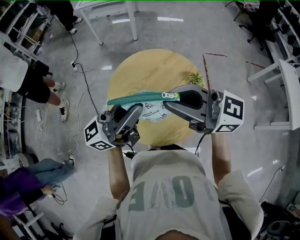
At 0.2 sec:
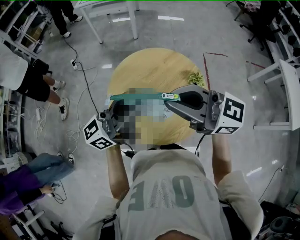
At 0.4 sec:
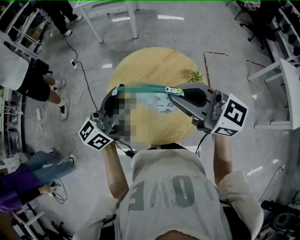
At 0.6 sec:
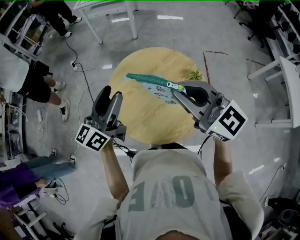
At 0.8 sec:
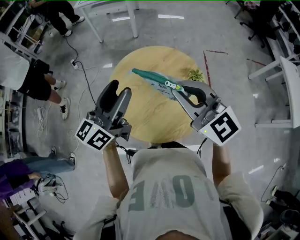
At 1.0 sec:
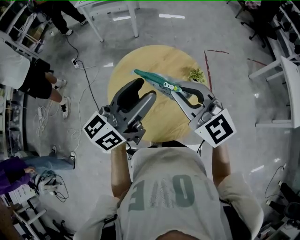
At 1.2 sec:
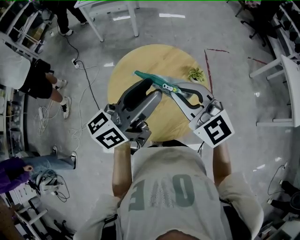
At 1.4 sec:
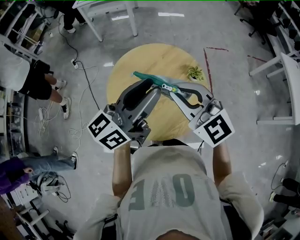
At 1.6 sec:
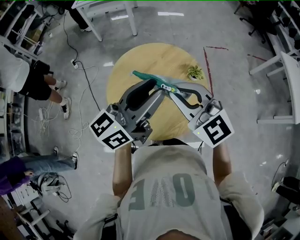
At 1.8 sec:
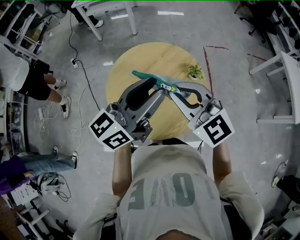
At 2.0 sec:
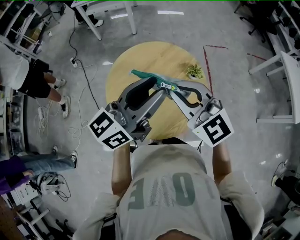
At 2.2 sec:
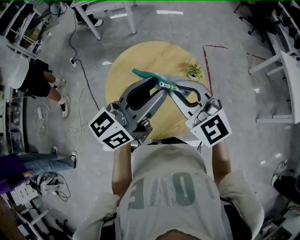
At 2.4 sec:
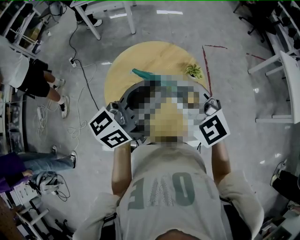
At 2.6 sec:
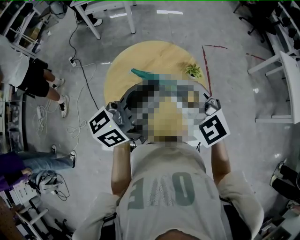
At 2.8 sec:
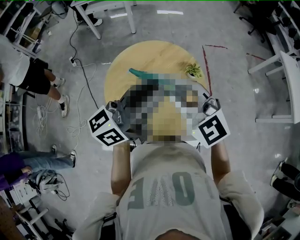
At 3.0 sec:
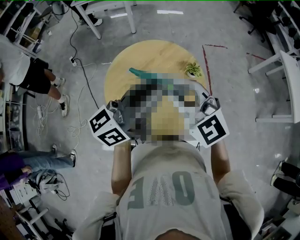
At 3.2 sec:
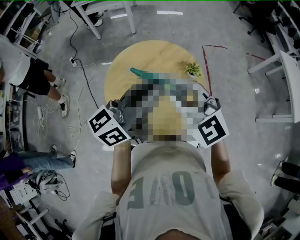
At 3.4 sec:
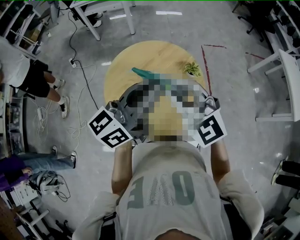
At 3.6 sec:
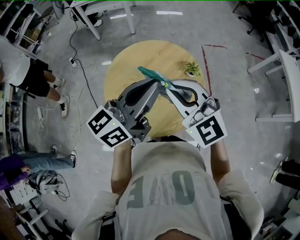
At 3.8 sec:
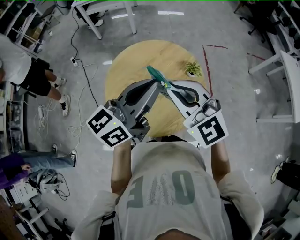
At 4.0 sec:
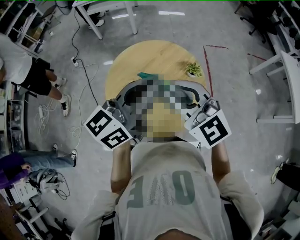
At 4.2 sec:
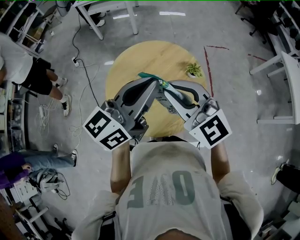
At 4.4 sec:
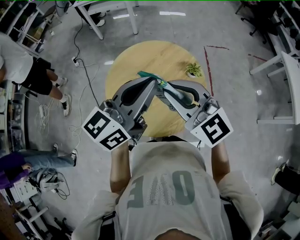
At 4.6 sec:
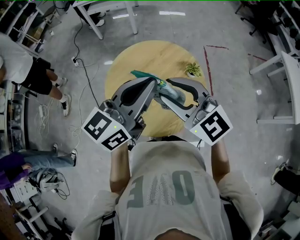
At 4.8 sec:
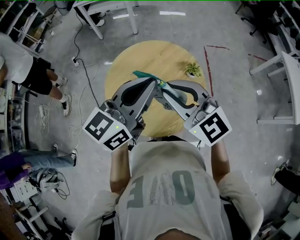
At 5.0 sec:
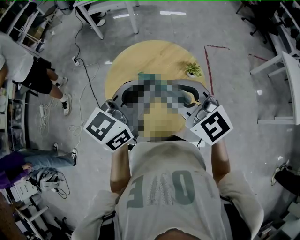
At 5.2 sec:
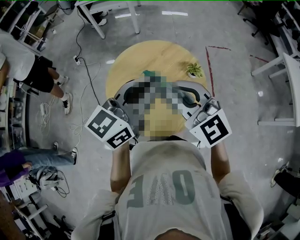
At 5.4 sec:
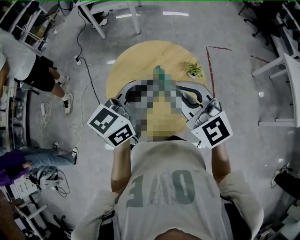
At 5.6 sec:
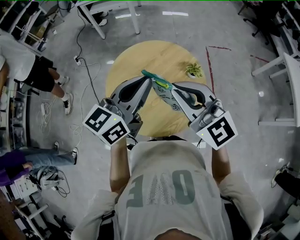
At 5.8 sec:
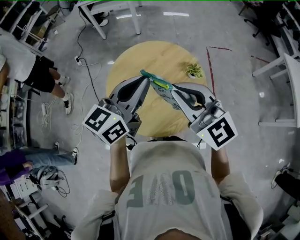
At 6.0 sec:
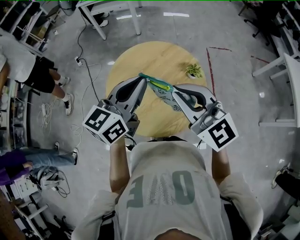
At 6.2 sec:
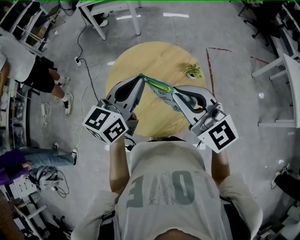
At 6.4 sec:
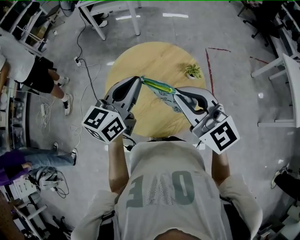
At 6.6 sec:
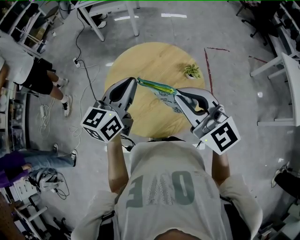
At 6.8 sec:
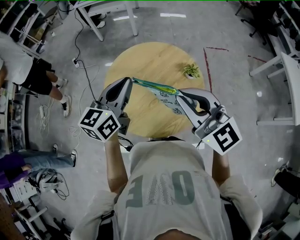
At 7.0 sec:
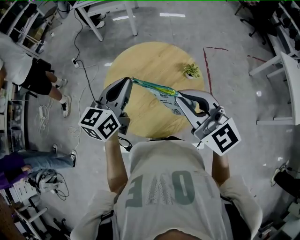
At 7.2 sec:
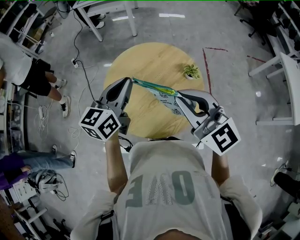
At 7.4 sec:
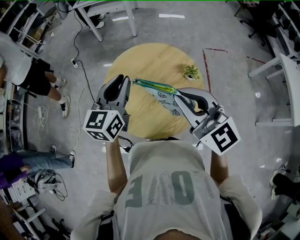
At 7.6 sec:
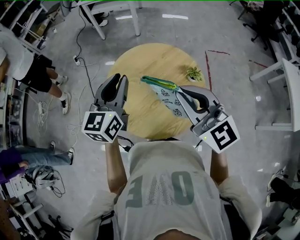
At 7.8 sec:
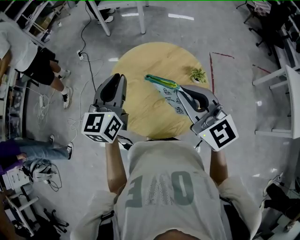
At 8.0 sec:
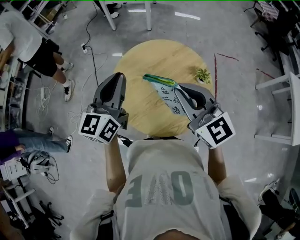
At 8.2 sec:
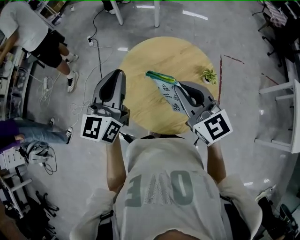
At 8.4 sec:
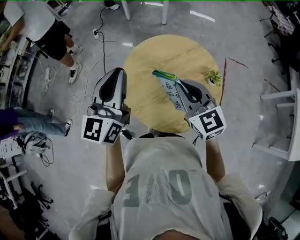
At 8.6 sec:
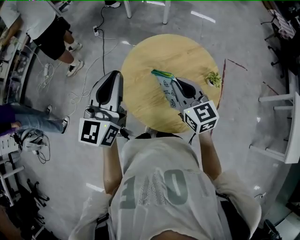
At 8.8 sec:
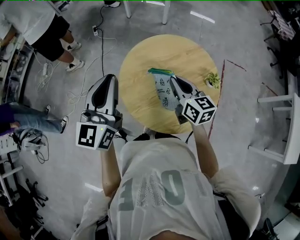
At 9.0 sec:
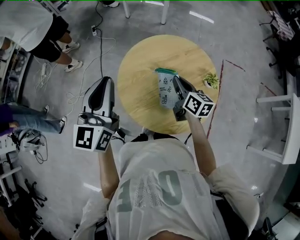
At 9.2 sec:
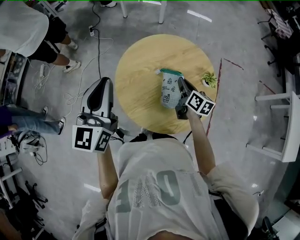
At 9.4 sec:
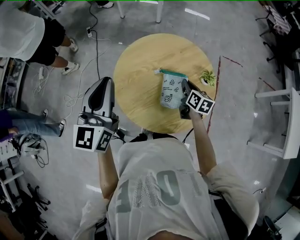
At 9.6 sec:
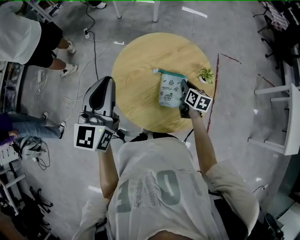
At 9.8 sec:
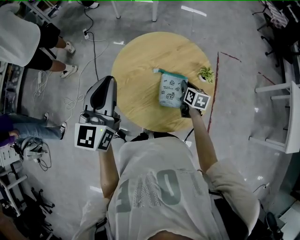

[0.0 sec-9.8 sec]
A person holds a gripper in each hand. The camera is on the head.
0.0 sec to 1.4 sec: The left gripper swivels roughly 20 degrees, and opens its fingers, while the right gripper moves downward, approximately 5 cm, and rotates approximately 50 degrees.
1.4 sec to 4.2 sec: There are only small adjustments of the grippers.
4.2 sec to 5.6 sec: The grippers make only small movements.
5.6 sec to 7.0 sec: The left gripper travels to the left and downward by roughly 10 cm.
7.0 sec to 8.4 sec: The left gripper moves to the left and upward, approximately 10 cm, and rotates roughly 30 degrees; the right gripper heads downward, forward and to the left, covering some 10 cm.
8.4 sec to 9.8 sec: The right gripper goes about 30 cm downward and to the right, and changes its angle by about 50 degrees.

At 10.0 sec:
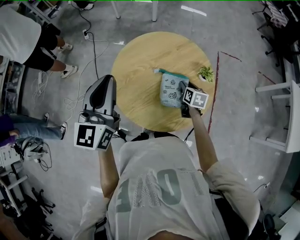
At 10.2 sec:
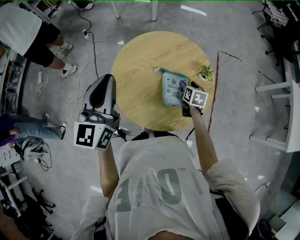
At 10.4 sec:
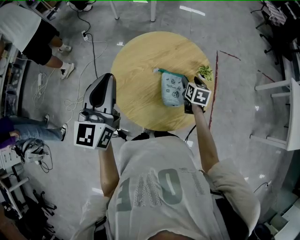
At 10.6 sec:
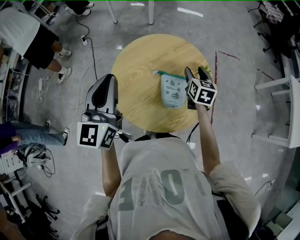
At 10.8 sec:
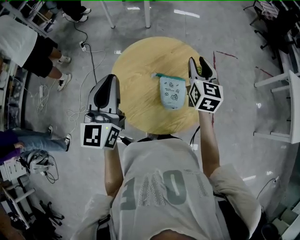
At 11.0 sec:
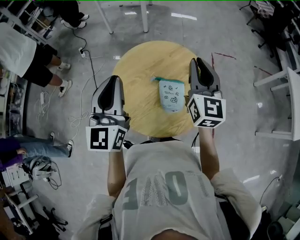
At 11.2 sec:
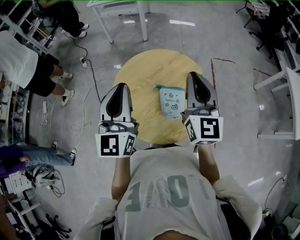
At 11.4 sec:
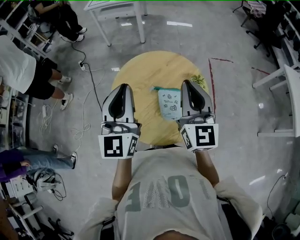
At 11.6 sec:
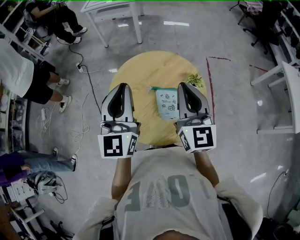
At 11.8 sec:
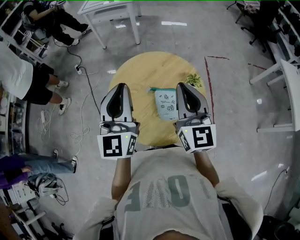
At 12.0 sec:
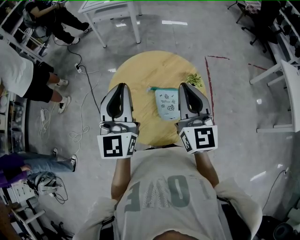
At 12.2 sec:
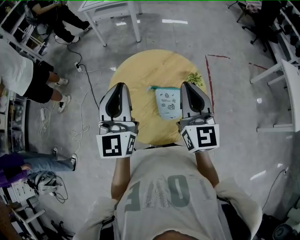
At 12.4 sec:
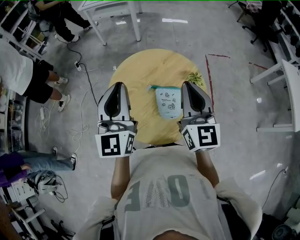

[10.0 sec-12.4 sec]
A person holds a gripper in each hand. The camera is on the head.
10.0 sec to 11.2 sec: The right gripper goes about 35 cm upward, tips its fingers upward by approximately 50 degrees, and closes up. Meanwhile the left gripper moves to the right, about 5 cm.
11.2 sec to 12.4 sec: There are only small adjustments of the grippers.

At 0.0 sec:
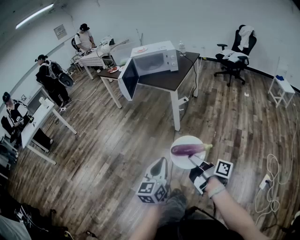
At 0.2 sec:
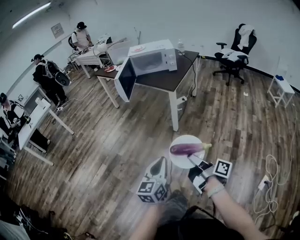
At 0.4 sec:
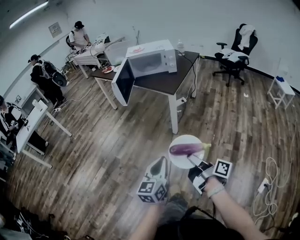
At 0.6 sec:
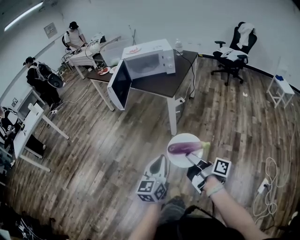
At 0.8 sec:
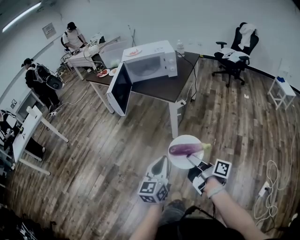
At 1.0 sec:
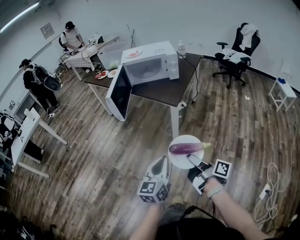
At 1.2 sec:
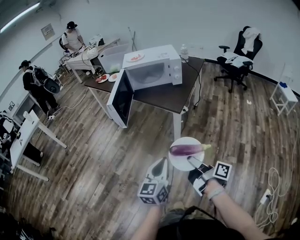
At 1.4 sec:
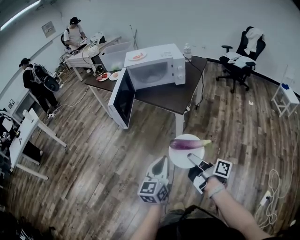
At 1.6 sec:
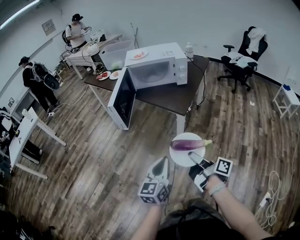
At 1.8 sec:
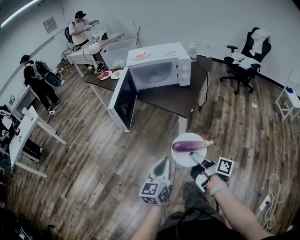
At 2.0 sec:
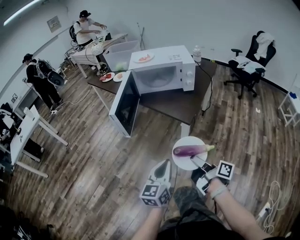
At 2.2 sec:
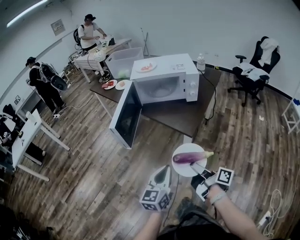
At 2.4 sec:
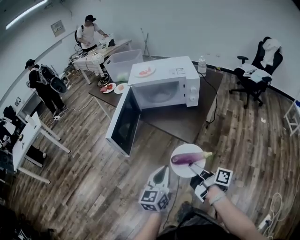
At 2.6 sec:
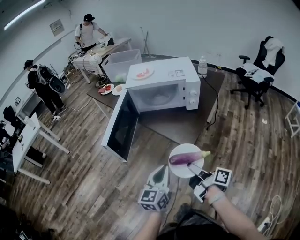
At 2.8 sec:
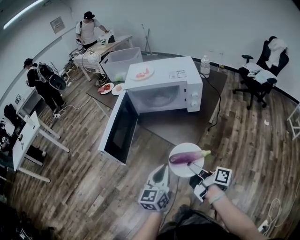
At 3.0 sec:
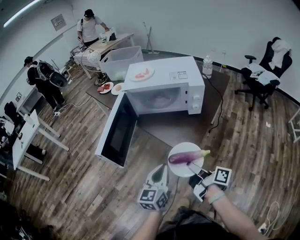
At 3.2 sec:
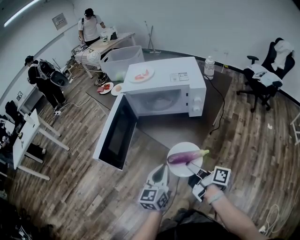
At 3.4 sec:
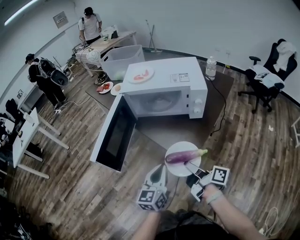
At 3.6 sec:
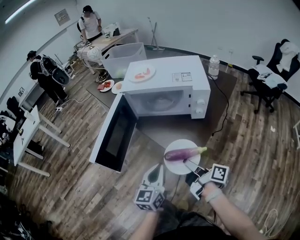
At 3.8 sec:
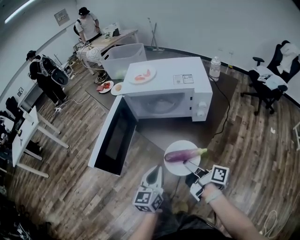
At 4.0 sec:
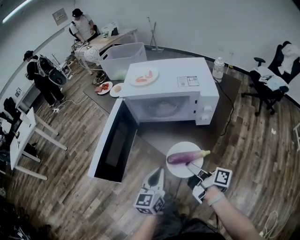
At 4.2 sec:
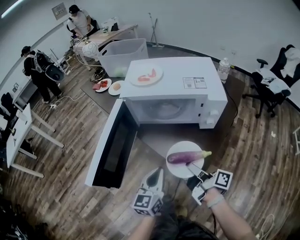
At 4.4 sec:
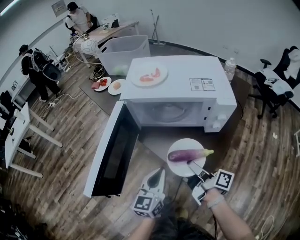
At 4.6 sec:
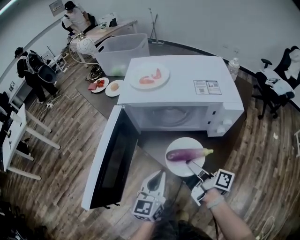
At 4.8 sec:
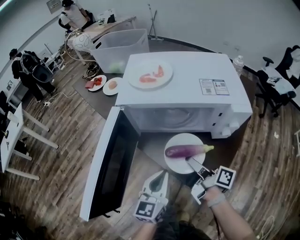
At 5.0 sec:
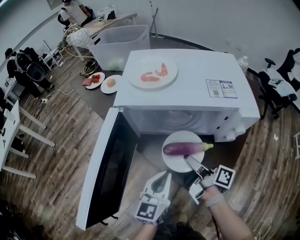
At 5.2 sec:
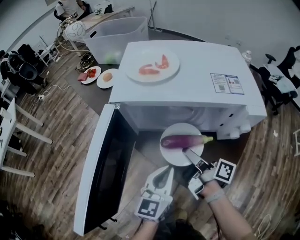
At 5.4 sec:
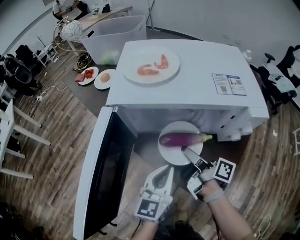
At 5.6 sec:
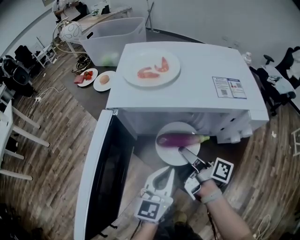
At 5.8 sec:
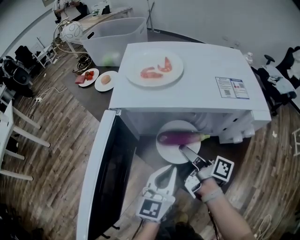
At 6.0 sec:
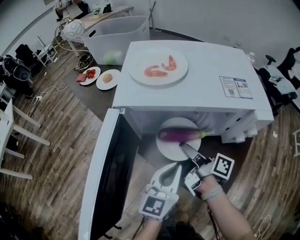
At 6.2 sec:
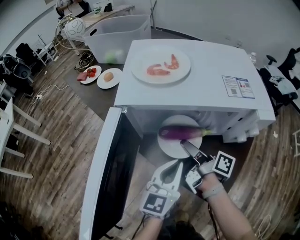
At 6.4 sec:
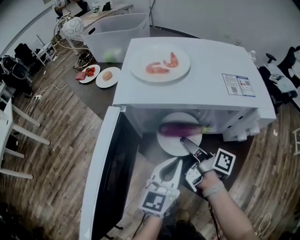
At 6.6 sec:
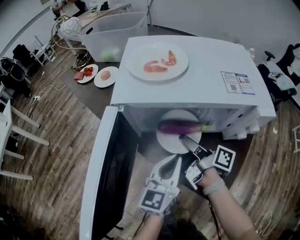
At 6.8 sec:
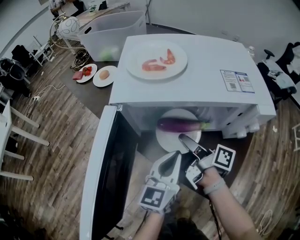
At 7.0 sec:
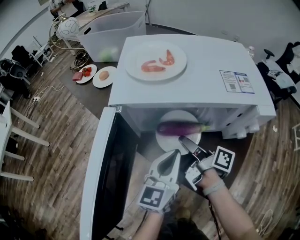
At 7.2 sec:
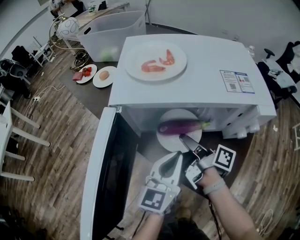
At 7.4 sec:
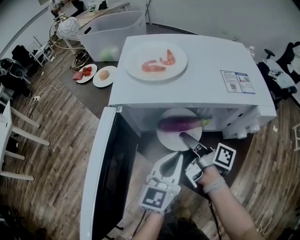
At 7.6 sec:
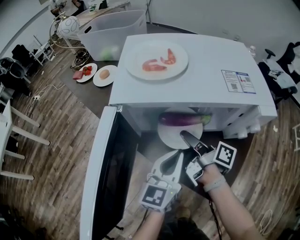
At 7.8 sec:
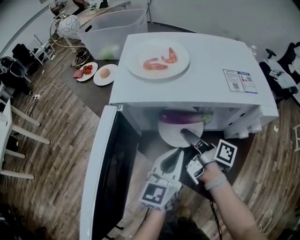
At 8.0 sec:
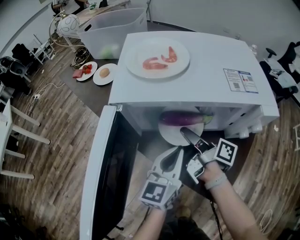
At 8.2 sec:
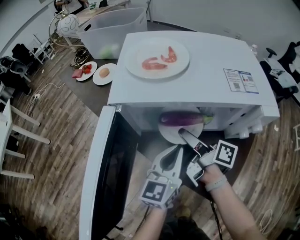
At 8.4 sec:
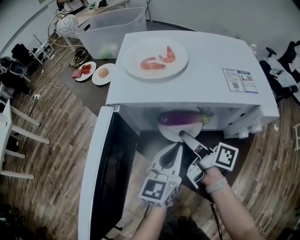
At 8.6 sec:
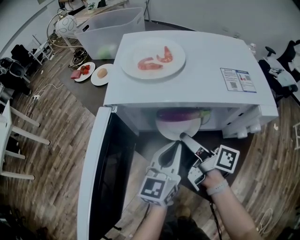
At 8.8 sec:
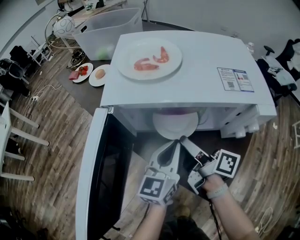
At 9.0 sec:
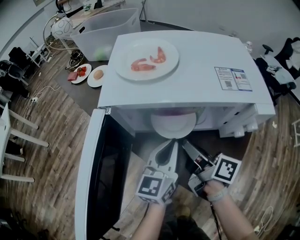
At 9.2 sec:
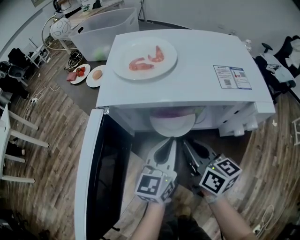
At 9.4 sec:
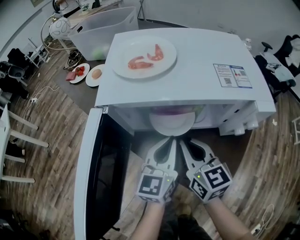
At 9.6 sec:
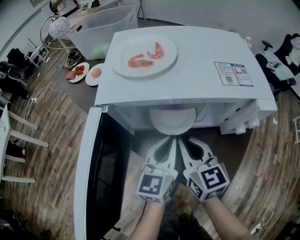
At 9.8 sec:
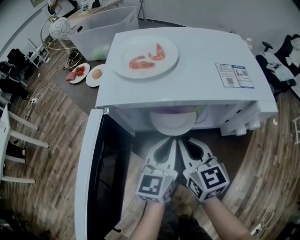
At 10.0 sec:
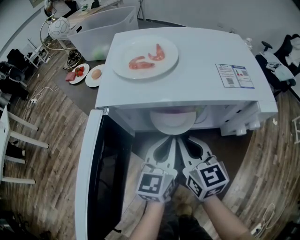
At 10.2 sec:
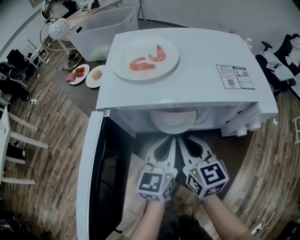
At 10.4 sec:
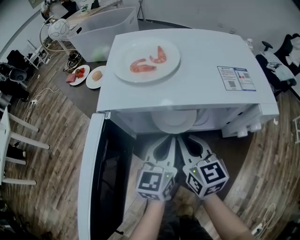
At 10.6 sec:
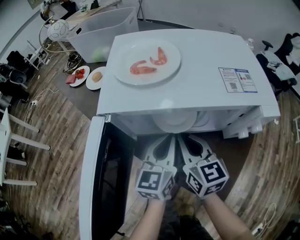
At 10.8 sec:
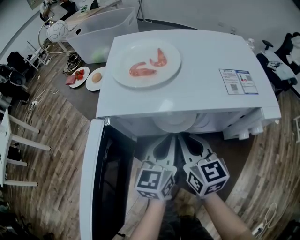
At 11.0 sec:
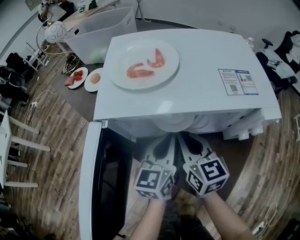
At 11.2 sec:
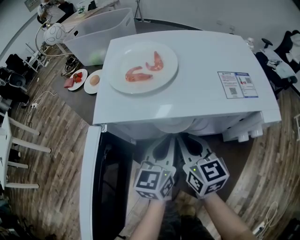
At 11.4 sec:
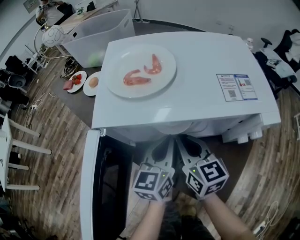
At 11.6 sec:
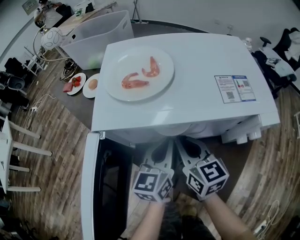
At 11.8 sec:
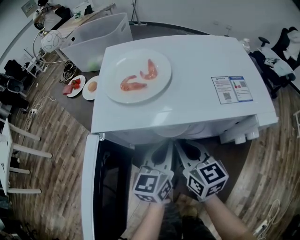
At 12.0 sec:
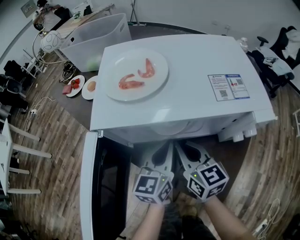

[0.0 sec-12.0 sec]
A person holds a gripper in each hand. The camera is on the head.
0.0 sec to 1.6 sec: Both grippers travel together forward, roughly 35 cm.
1.6 sec to 3.0 sec: The two grippers go some 25 cm forward.
3.0 sec to 4.4 sec: The two grippers go some 15 cm forward.
4.4 sec to 6.0 sec: The left gripper travels forward by some 10 cm. Meanwhile the right gripper shifts some 15 cm forward.
6.0 sec to 7.6 sec: There are only small adjustments of the grippers.
7.6 sec to 9.0 sec: The right gripper swivels about 20 degrees, and opens, then closes once more.
9.0 sec to 10.4 sec: The right gripper rolls counterclockwise, seen from behind, by roughly 50 degrees.
10.4 sec to 12.0 sec: There are only small adjustments of the grippers.
